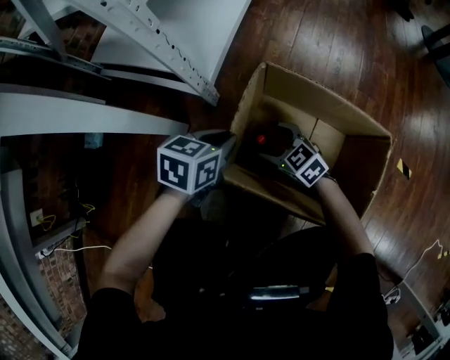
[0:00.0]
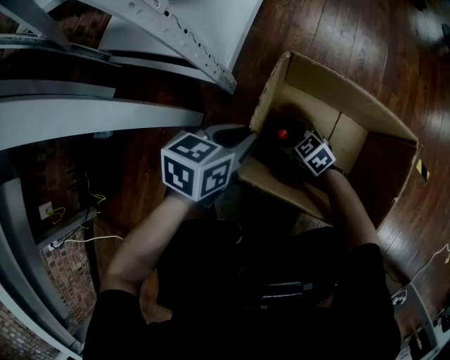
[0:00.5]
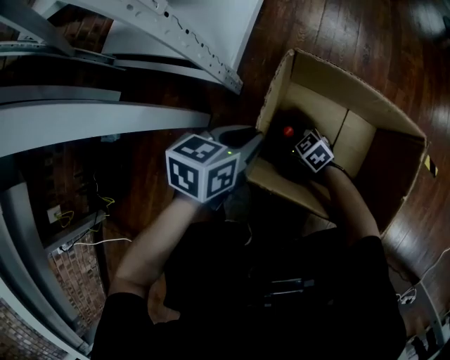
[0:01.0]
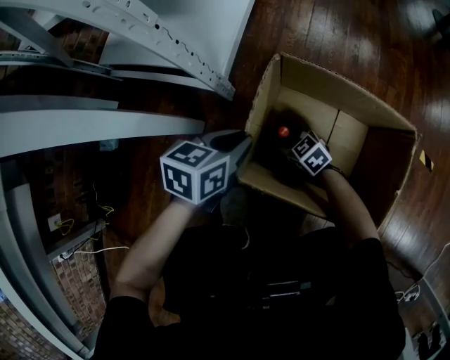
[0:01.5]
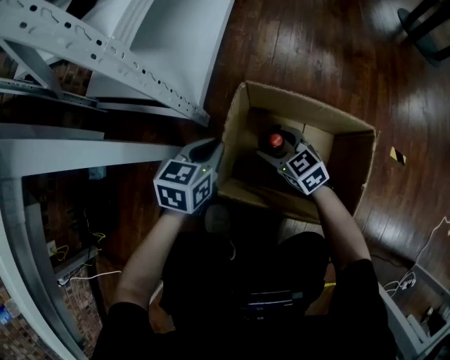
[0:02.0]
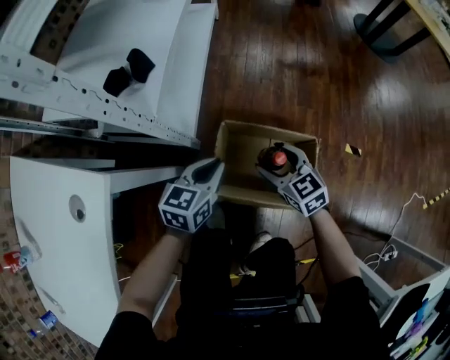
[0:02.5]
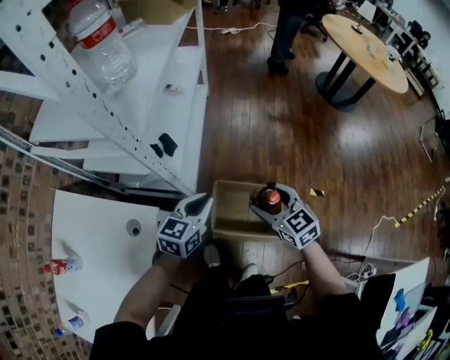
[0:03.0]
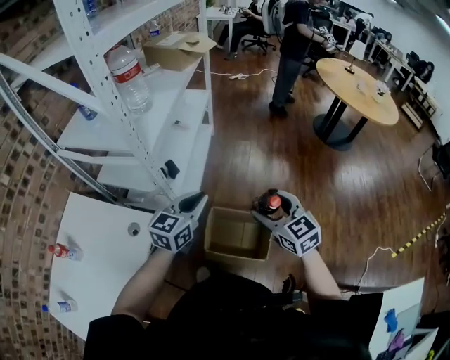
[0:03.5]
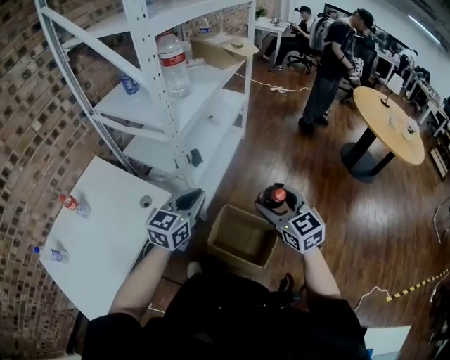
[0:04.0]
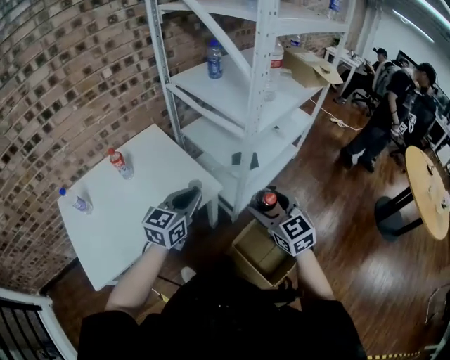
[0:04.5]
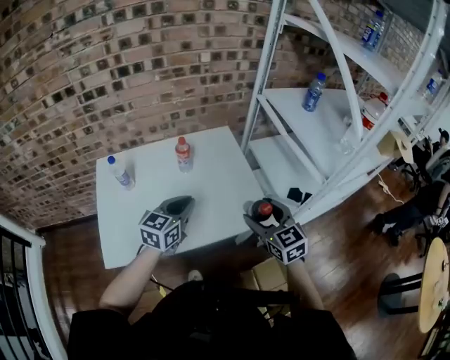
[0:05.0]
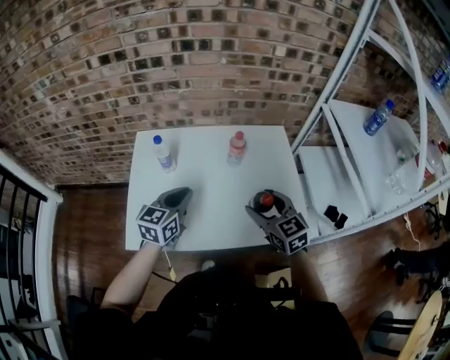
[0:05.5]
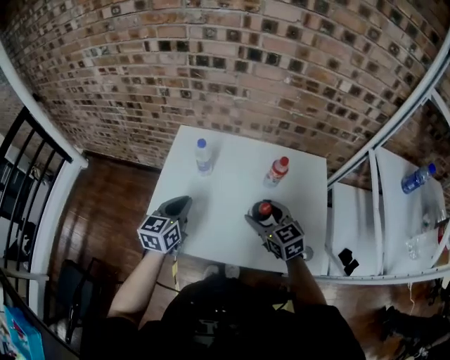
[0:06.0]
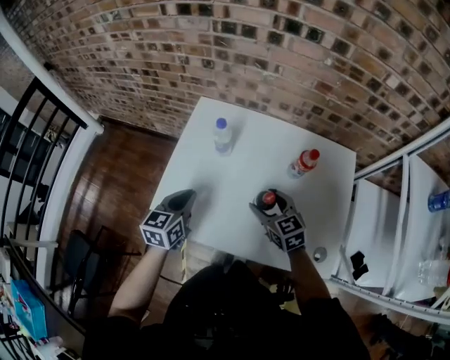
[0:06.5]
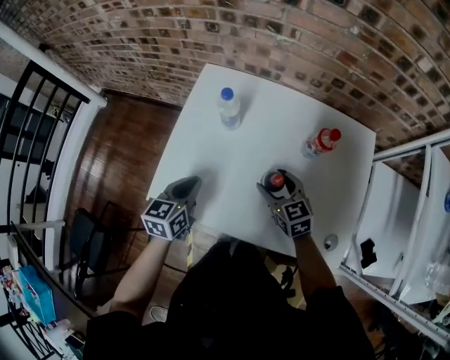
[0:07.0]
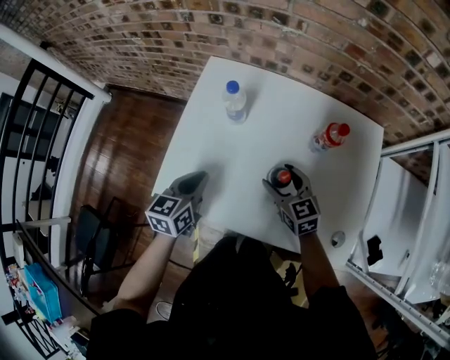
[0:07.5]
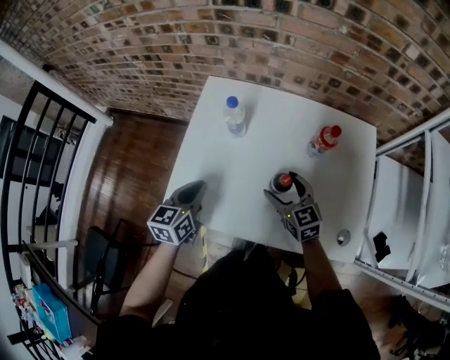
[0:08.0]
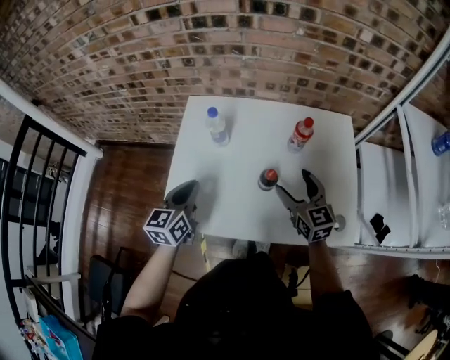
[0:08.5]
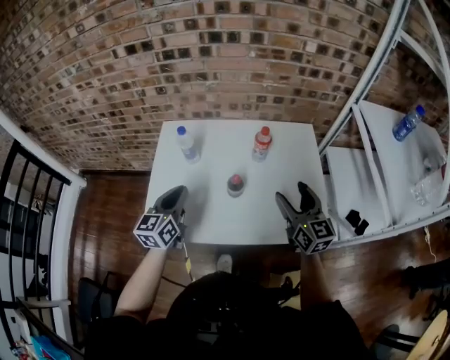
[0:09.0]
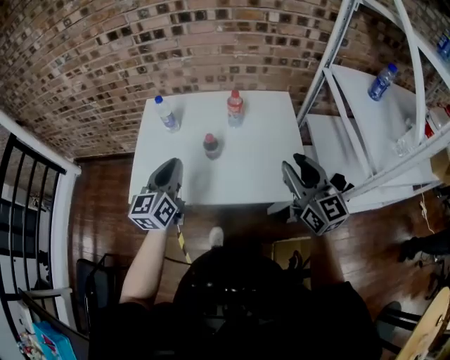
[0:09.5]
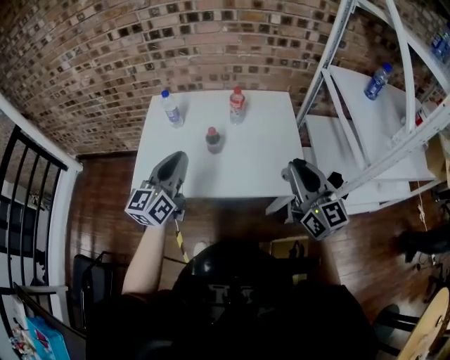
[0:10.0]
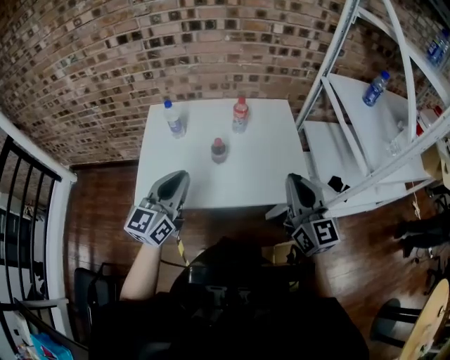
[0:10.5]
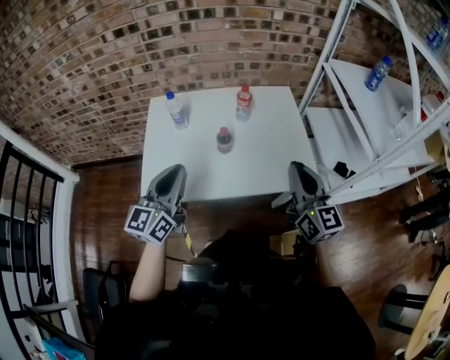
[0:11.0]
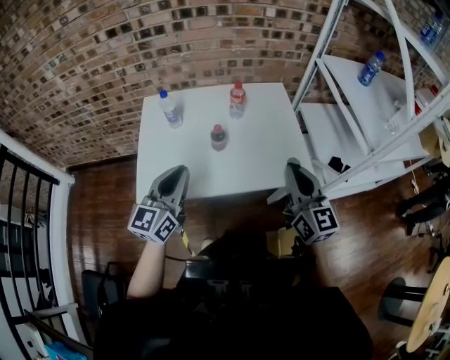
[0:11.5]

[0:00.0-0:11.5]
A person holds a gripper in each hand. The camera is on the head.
0:00.0 to 0:02.0: The right gripper moves about 15 cm downward and comes back.
0:02.0 to 0:04.0: The grippers both shift upward by roughly 80 cm. The right gripper rotates about 20 degrees, while the left gripper swivels approximately 30 degrees.
0:04.0 to 0:06.0: Both grippers are carried some 70 cm. The right gripper swivels some 80 degrees. The left gripper swivels about 90 degrees.
0:06.0 to 0:07.5: The left gripper goes approximately 10 cm downward. Meanwhile the right gripper heads downward and forward, covering some 15 cm.
0:07.5 to 0:09.5: The right gripper shifts roughly 40 cm upward, backward and to the right, changes its angle by roughly 40 degrees, and closes its fingers; the left gripper goes approximately 25 cm upward, backward and to the right, and rotates some 30 degrees.
0:09.5 to 0:11.5: The left gripper is displaced backward by about 5 cm; the right gripper is displaced backward and to the left by approximately 10 cm, and closes.

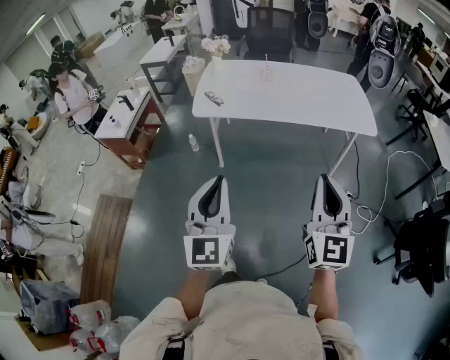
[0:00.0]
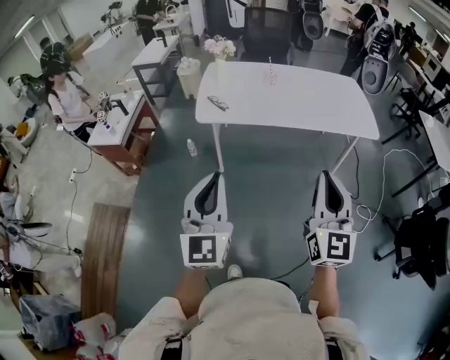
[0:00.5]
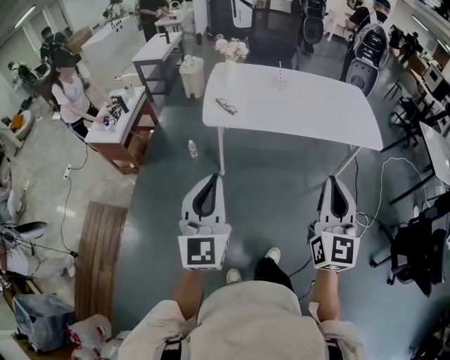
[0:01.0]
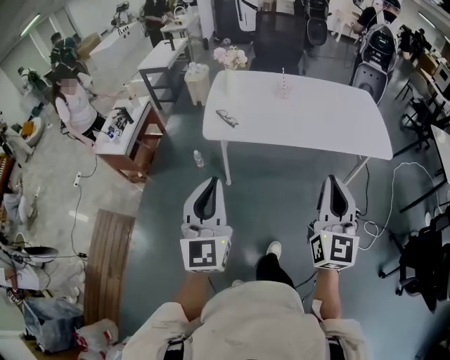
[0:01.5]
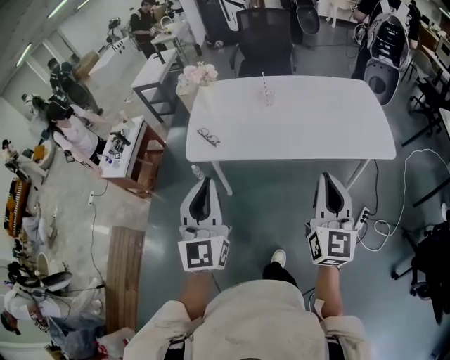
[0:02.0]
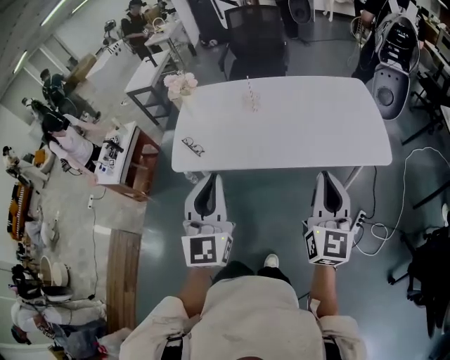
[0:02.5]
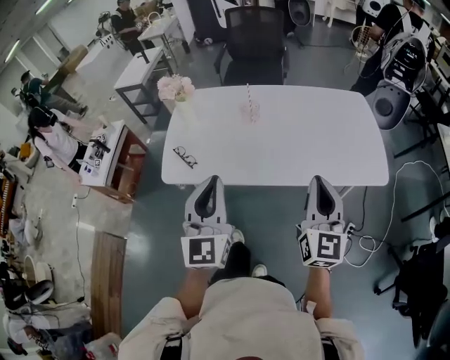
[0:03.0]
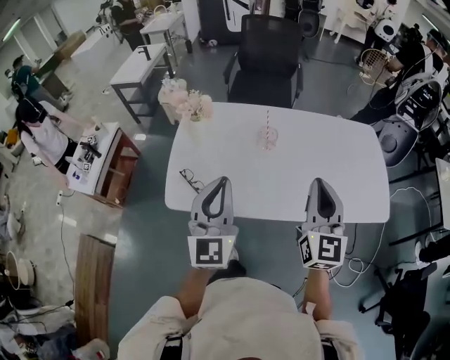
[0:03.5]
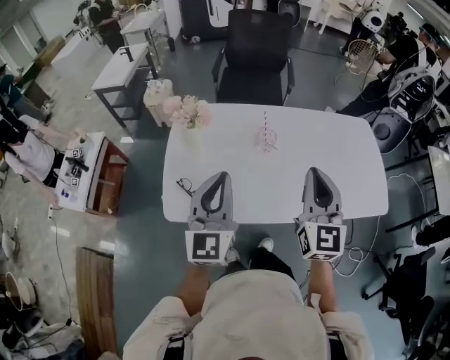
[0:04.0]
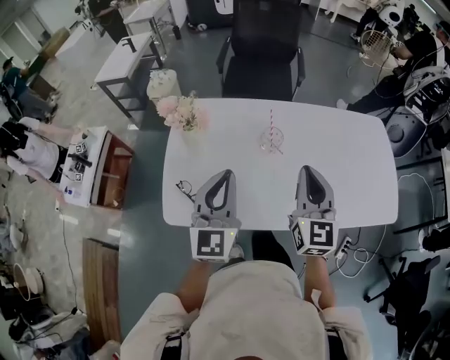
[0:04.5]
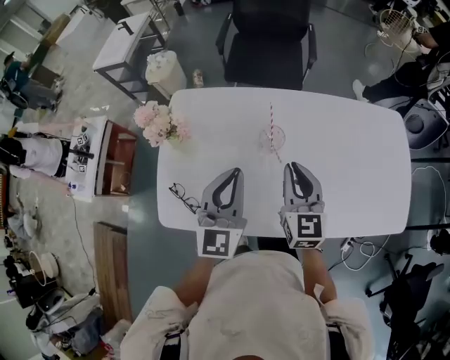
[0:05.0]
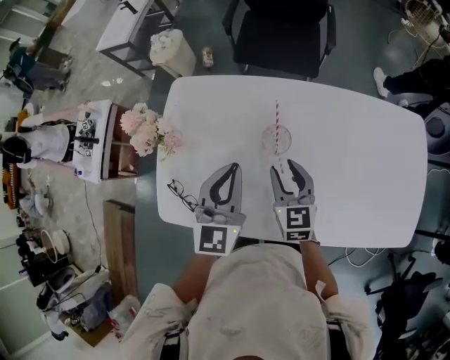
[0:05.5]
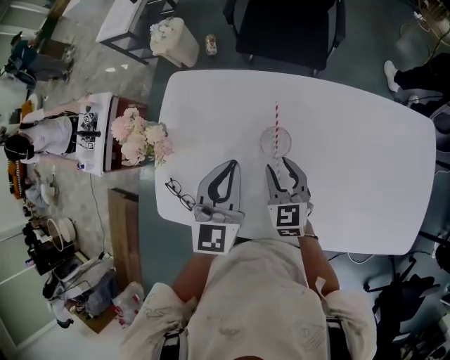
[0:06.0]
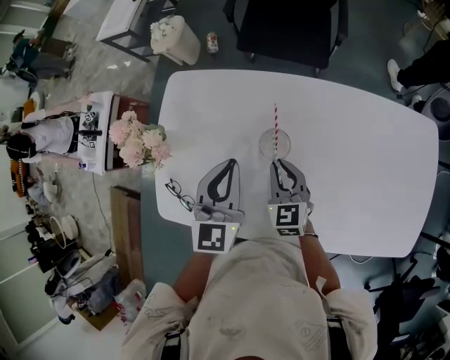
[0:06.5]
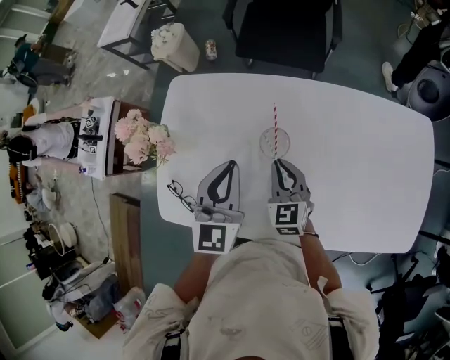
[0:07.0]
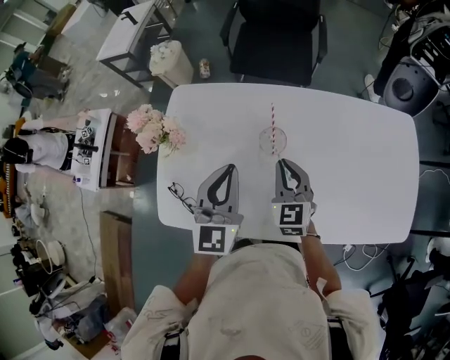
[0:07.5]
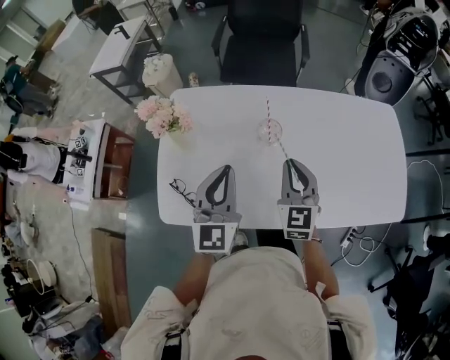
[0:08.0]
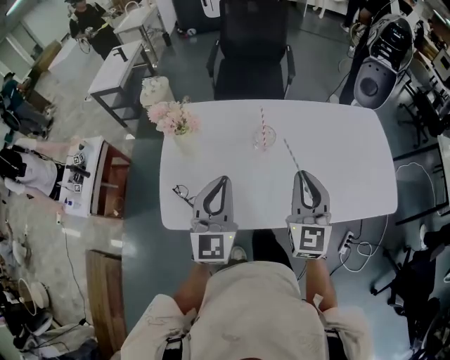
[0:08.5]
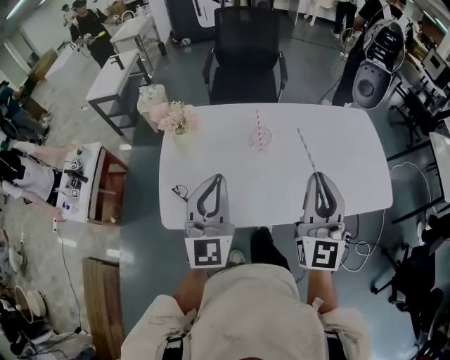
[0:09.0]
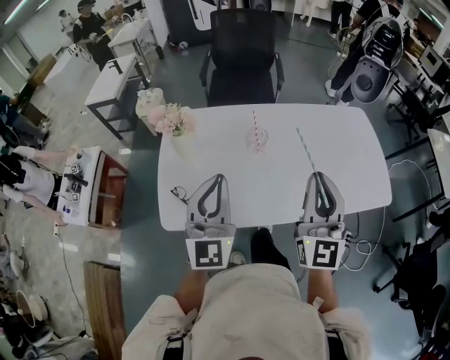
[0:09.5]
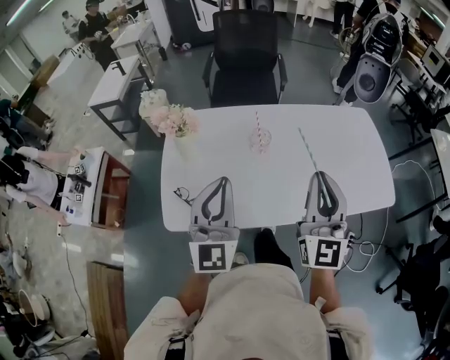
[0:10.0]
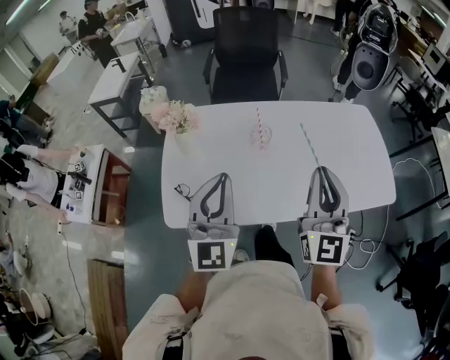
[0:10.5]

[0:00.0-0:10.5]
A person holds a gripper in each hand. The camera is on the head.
0:00.0 to 0:02.0: The grippers both shift forward by about 30 cm.
0:02.0 to 0:04.0: The two grippers go some 35 cm forward.
0:04.0 to 0:06.5: The right gripper moves downward and forward, some 40 cm, turns by roughly 40 degrees, and opens, then closes once more, while the left gripper heads forward, downward and to the right, covering approximately 30 cm, and swivels roughly 20 degrees.
0:06.5 to 0:08.5: The right gripper is displaced upward and backward by approximately 30 cm, and turns by some 30 degrees, while the left gripper shifts approximately 25 cm backward, upward and to the left.
0:08.5 to 0:10.5: The two grippers go about 10 cm upward and backward.

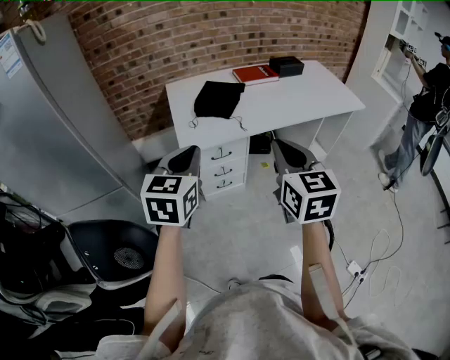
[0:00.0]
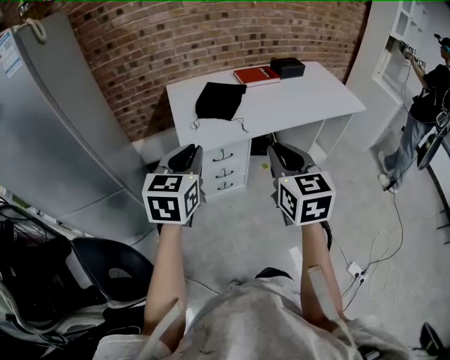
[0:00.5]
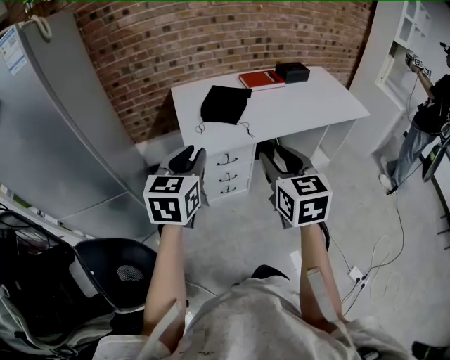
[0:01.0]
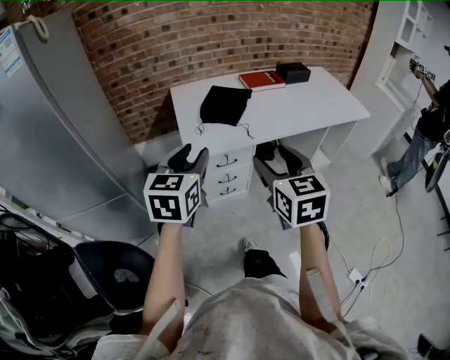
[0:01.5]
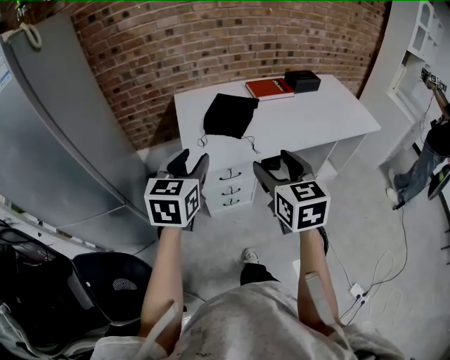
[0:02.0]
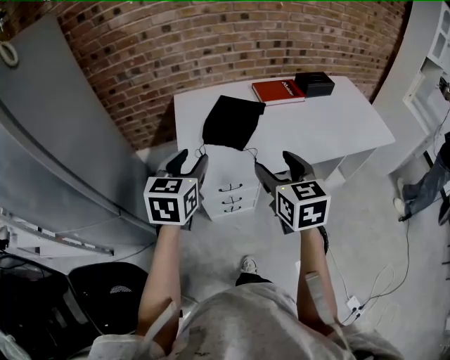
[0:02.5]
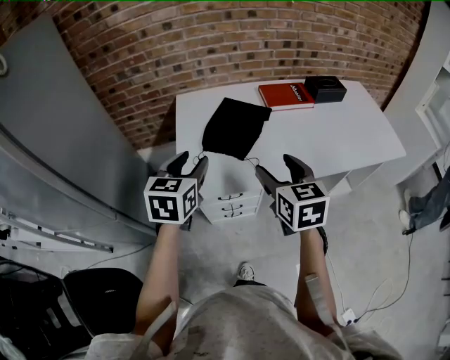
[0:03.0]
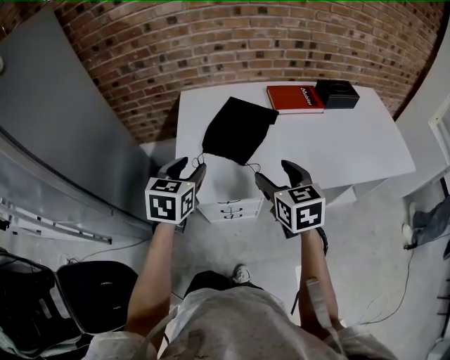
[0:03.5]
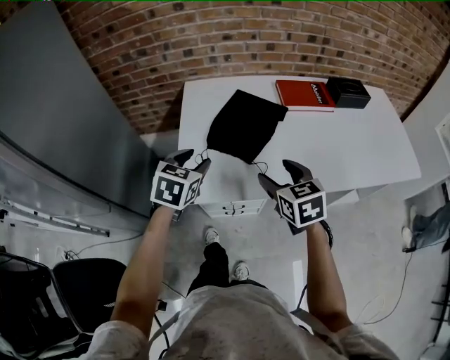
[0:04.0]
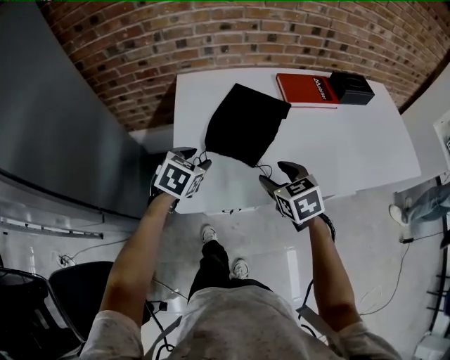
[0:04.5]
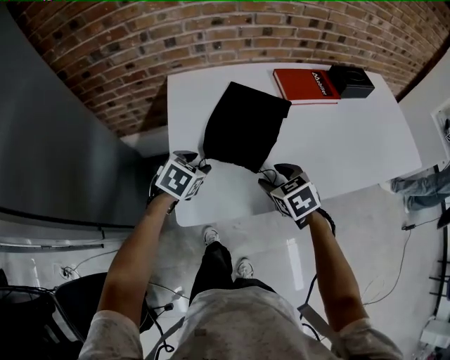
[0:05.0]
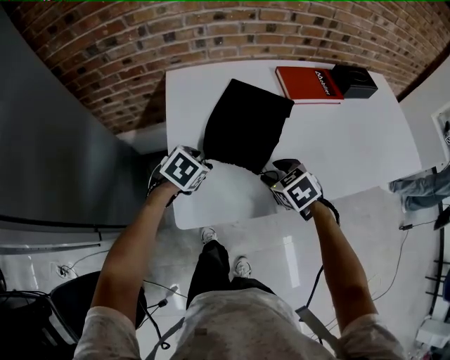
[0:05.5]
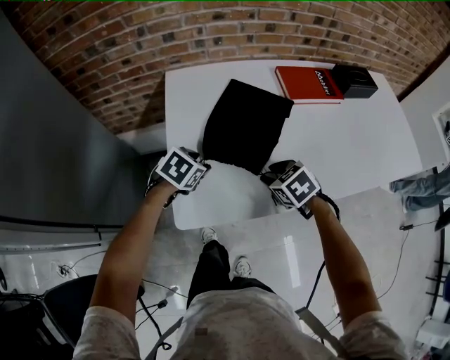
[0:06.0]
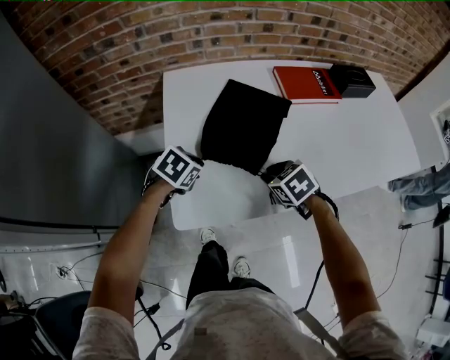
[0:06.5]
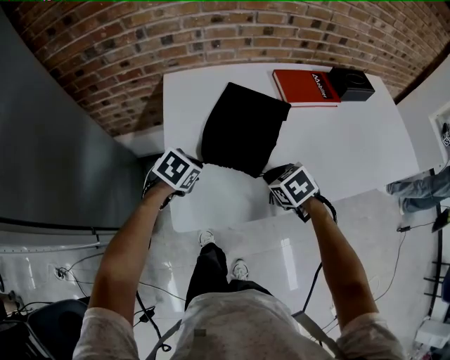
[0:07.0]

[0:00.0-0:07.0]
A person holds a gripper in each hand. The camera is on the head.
0:00.0 to 0:02.0: The two grippers go roughly 10 cm forward. The right gripper opens, while the left gripper opens.
0:02.0 to 0:03.5: Both grippers move forward and downward, roughly 20 cm.
0:03.5 to 0:05.0: The two grippers go approximately 20 cm downward and forward. The left gripper changes its angle by about 30 degrees. The right gripper changes its angle by roughly 30 degrees.
0:05.0 to 0:07.0: The left gripper closes. Meanwhile the right gripper closes its fingers.
